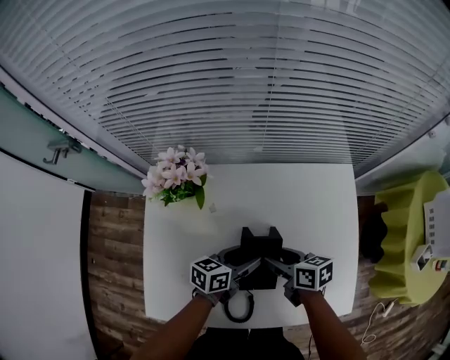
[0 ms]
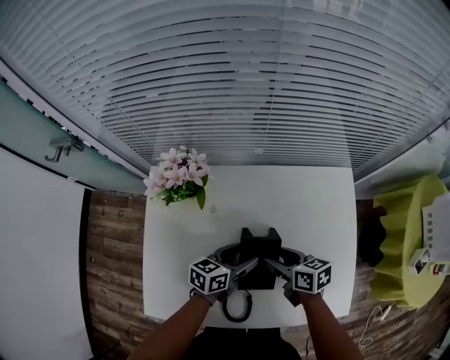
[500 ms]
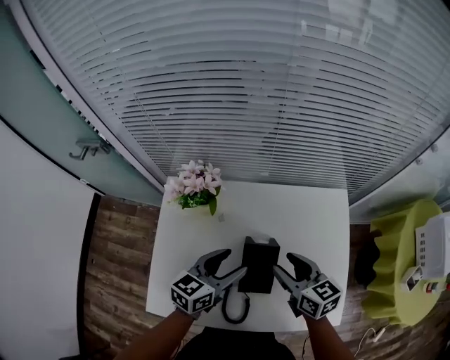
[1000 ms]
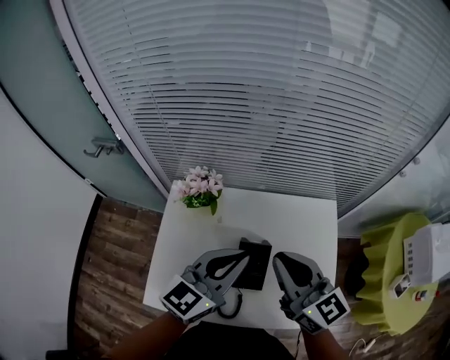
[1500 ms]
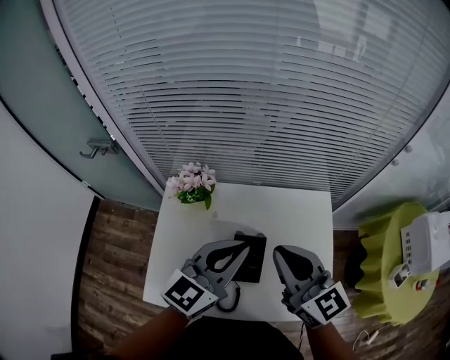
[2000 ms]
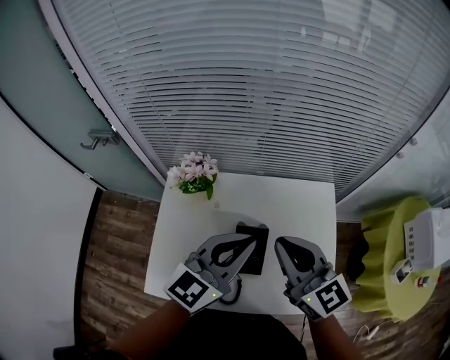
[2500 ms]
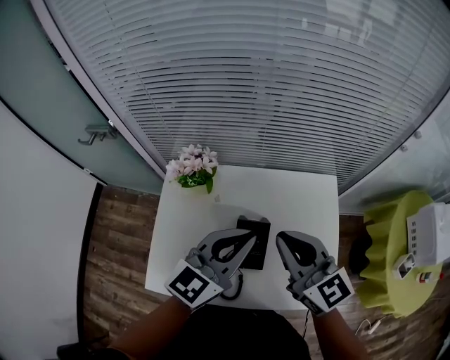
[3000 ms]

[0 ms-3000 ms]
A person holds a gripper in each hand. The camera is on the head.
0 ms to 1500 ms: The two grippers go some 35 cm upward. The right gripper tilts its fingers about 30 degrees upward, and closes up; the left gripper rotates approximately 40 degrees, and closes its fingers.
1500 ms to 3000 ms: The grippers make only small movements.

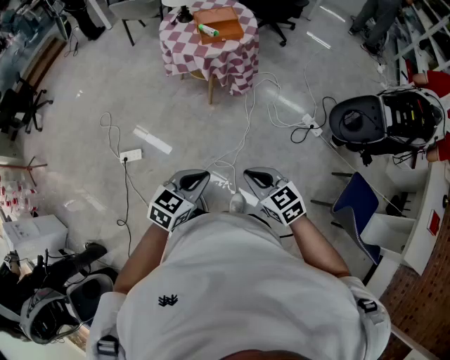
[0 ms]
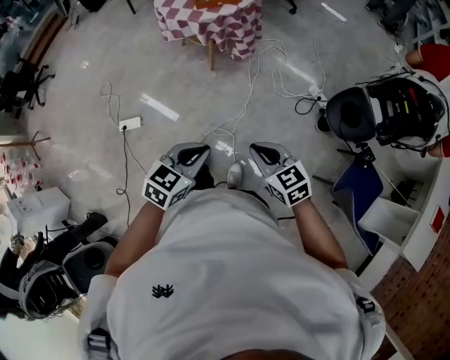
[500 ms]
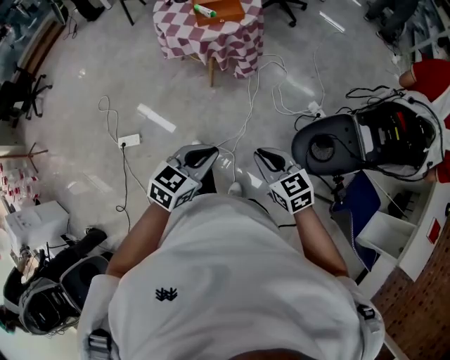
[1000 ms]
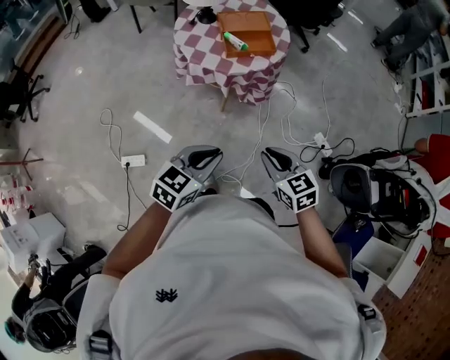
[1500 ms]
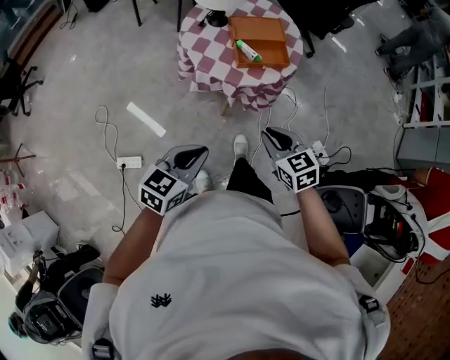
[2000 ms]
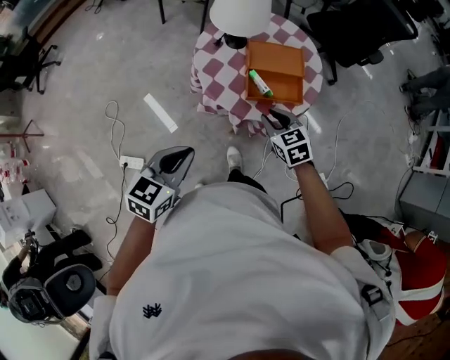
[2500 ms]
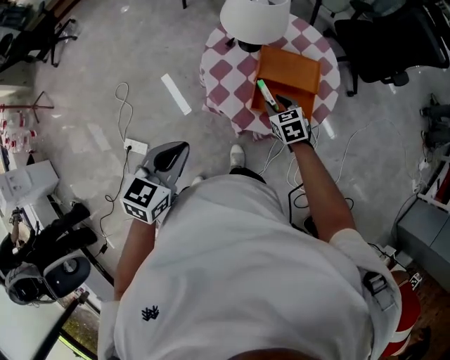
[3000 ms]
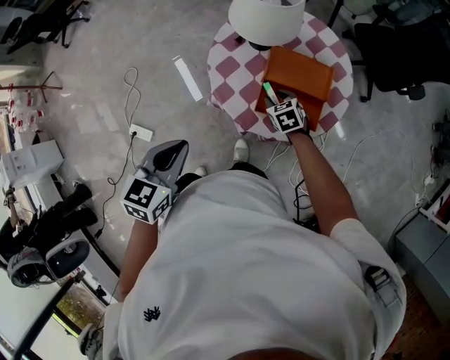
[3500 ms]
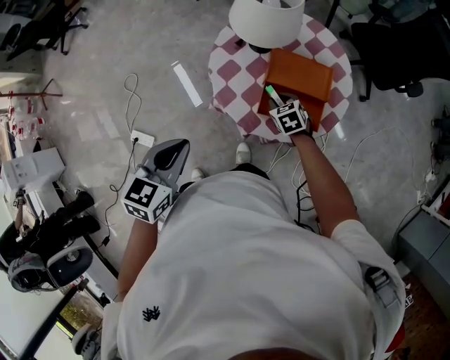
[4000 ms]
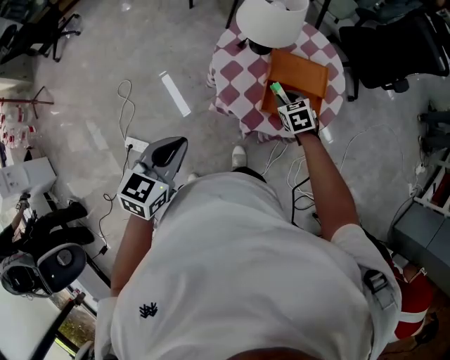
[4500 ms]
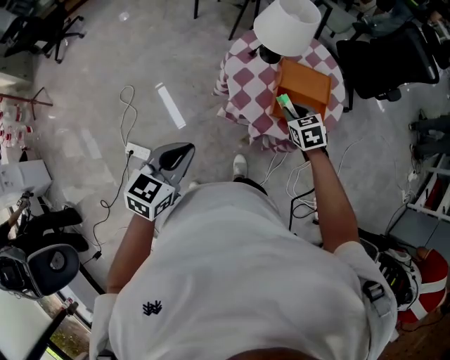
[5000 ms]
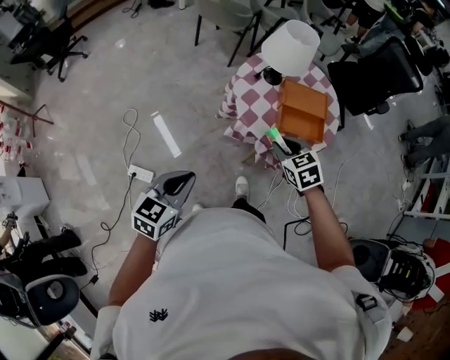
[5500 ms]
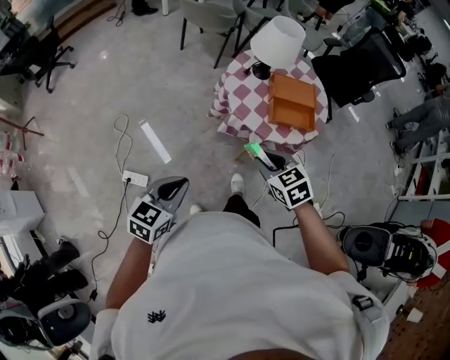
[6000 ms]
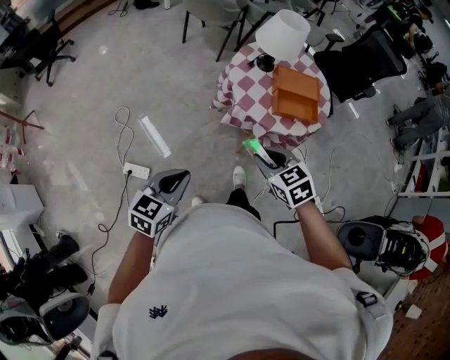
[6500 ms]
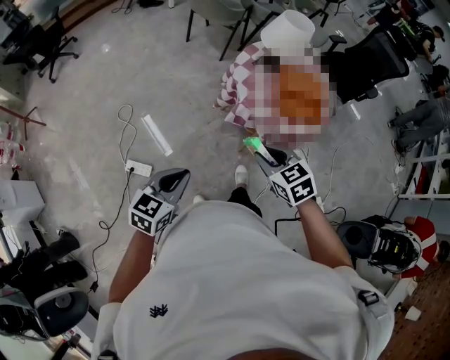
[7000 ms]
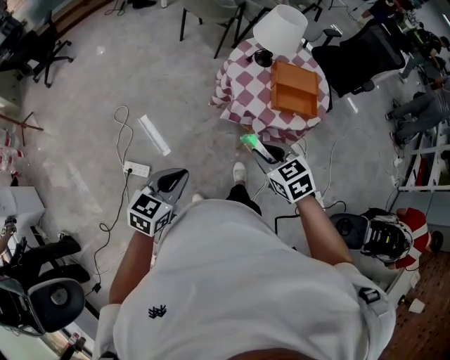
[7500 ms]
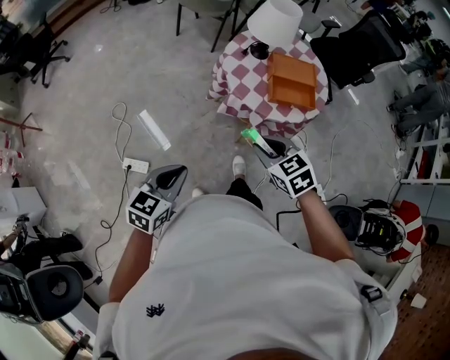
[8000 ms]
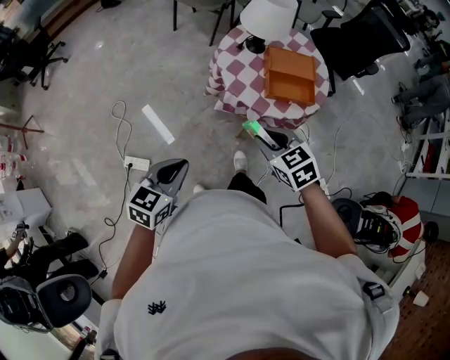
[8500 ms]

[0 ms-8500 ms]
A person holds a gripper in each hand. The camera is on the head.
0 ms to 2000 ms: The pair of grippers is taken forward, about 40 cm.
2000 ms to 4000 ms: The left gripper moves some 20 cm, and changes its angle by about 30 degrees, while the right gripper shifts by approximately 40 cm, and rotates some 30 degrees.
4000 ms to 6500 ms: The left gripper heads backward and to the left, covering some 25 cm. Meanwhile the right gripper moves backward, upward and to the left, roughly 40 cm.
6500 ms to 8500 ms: The right gripper moves about 5 cm.

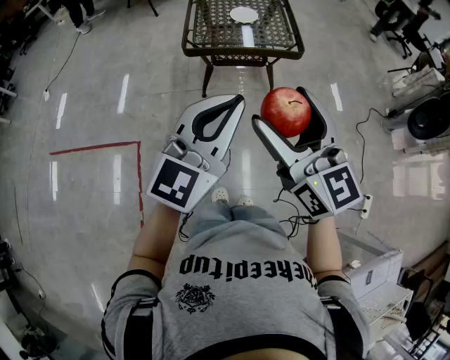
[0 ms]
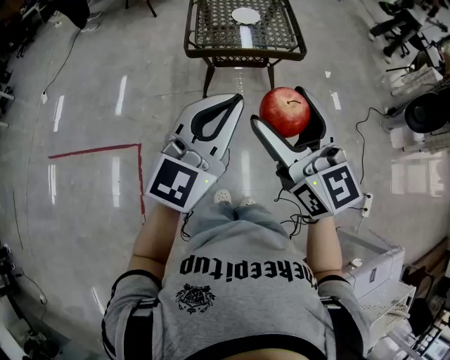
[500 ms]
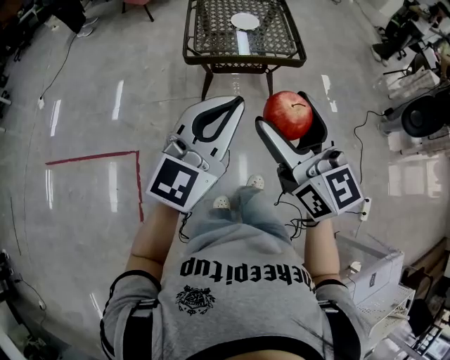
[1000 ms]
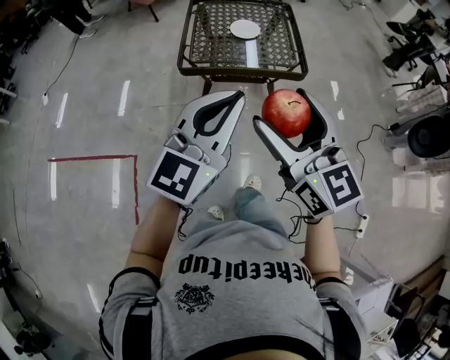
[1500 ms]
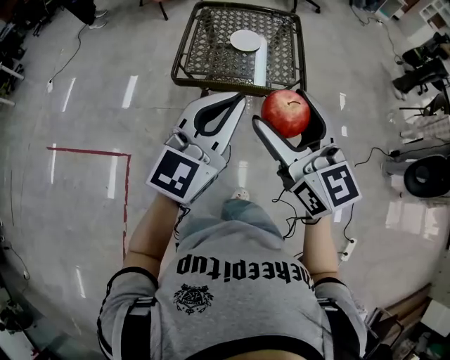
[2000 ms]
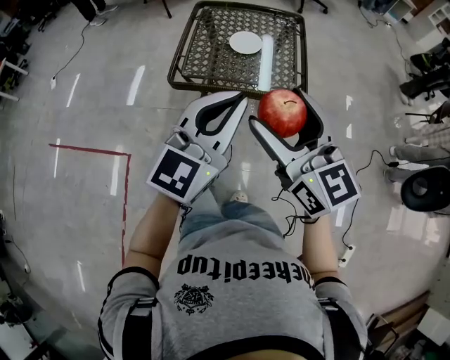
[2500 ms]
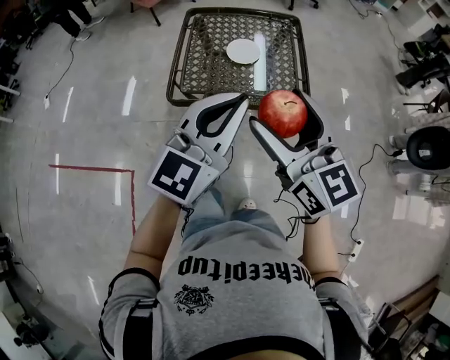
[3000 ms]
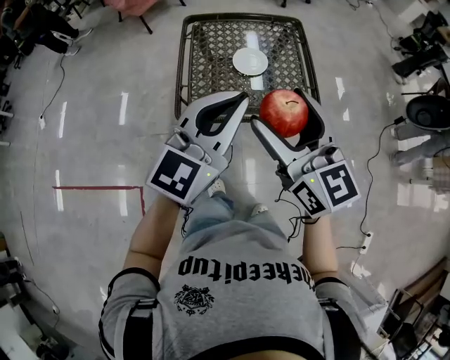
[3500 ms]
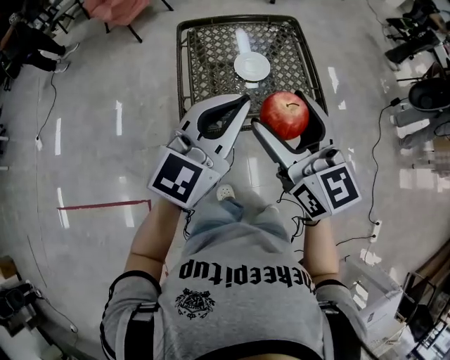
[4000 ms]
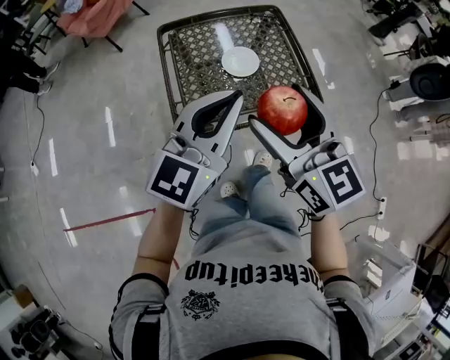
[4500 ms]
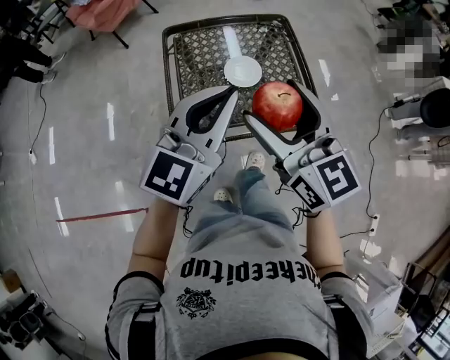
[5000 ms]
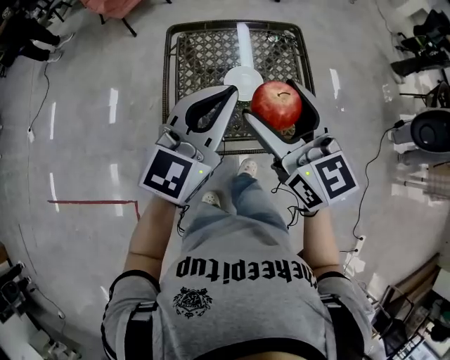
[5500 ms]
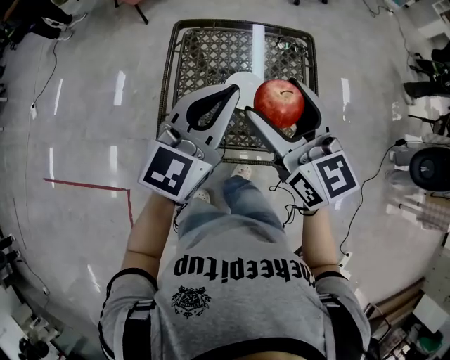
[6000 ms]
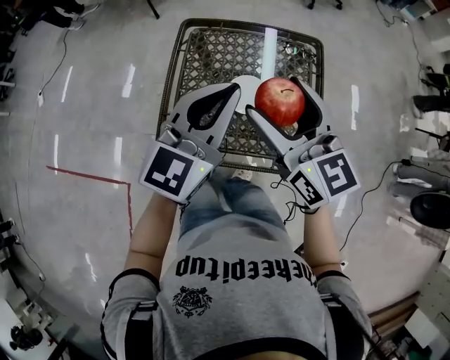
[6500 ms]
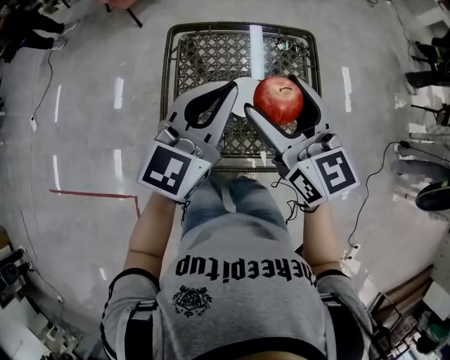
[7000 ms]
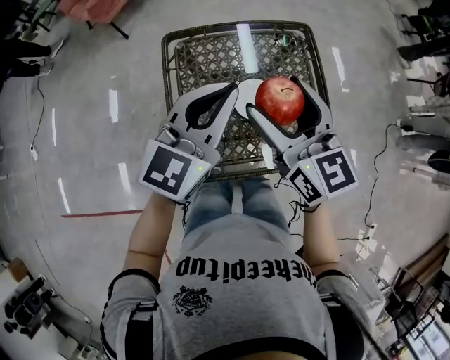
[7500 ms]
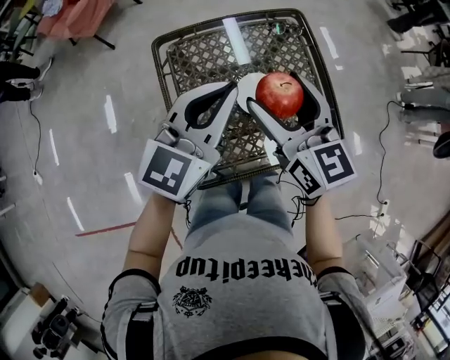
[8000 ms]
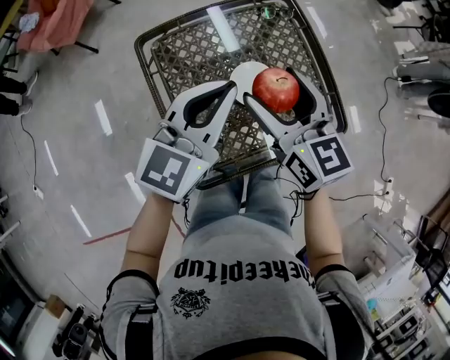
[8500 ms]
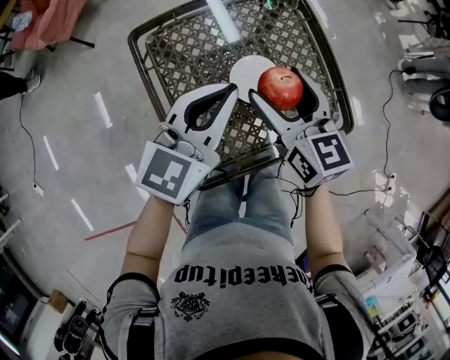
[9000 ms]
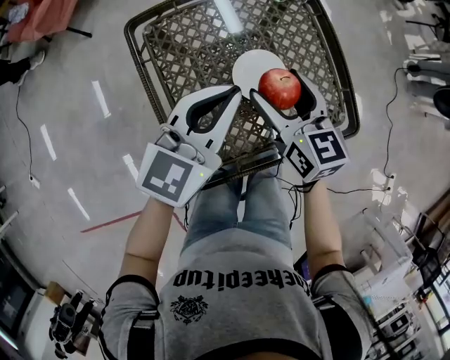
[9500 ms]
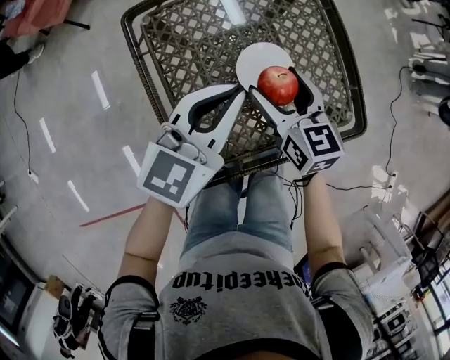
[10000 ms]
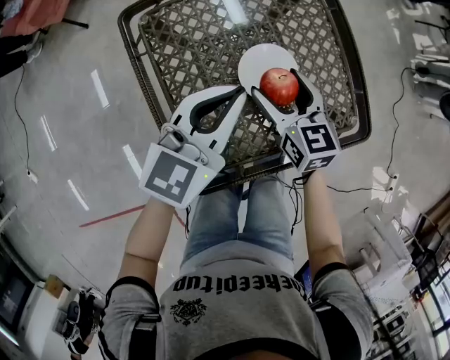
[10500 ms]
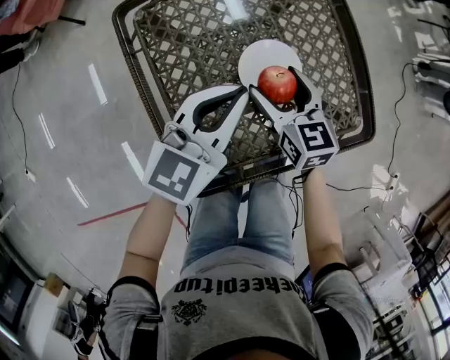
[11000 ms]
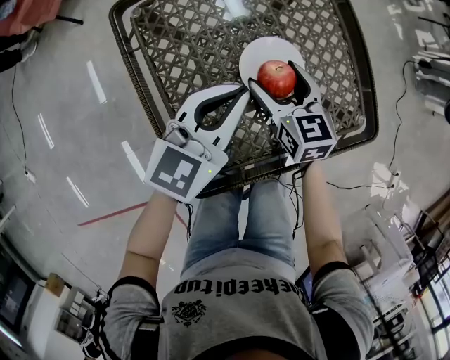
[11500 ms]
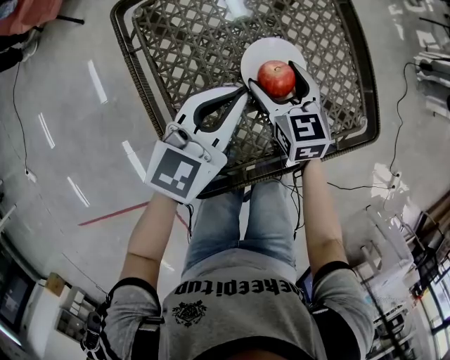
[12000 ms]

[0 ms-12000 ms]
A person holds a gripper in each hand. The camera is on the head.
0 ms to 2000 ms: The two grippers go roughly 20 cm forward.
2000 ms to 4000 ms: Both grippers move forward and to the left, some 15 cm.
4000 ms to 6000 ms: Both grippers travel together forward, some 20 cm.
6000 ms to 8000 ms: The right gripper is displaced forward and downward by approximately 10 cm, and changes its angle by about 20 degrees. The left gripper goes some 10 cm forward and to the left, and rotates some 20 degrees.
8000 ms to 10000 ms: The two grippers go some 20 cm downward.
10000 ms to 12000 ms: Both grippers move downward, some 10 cm.

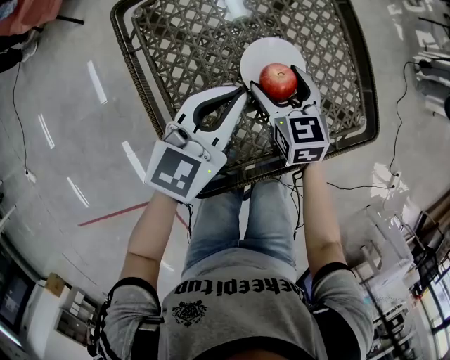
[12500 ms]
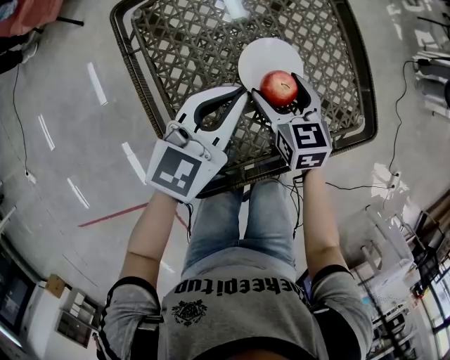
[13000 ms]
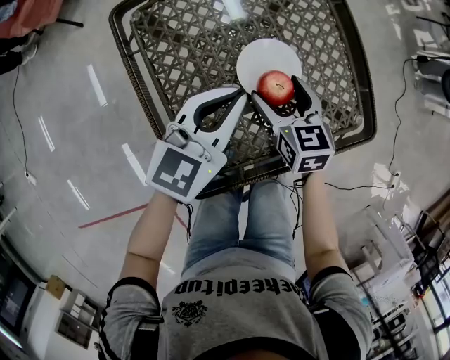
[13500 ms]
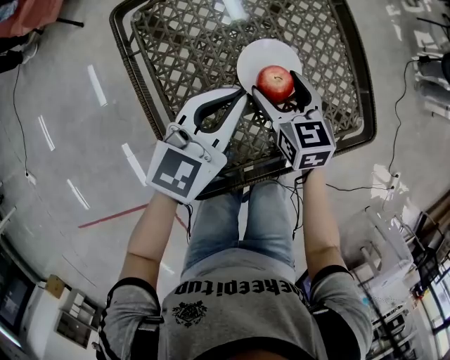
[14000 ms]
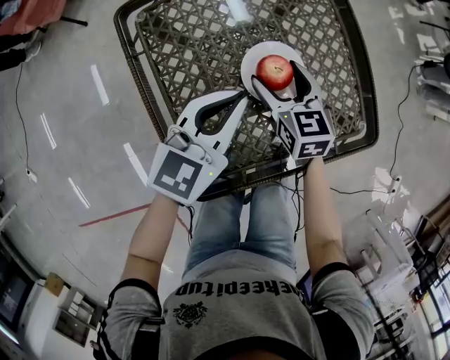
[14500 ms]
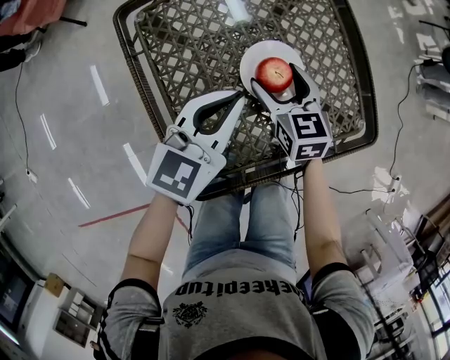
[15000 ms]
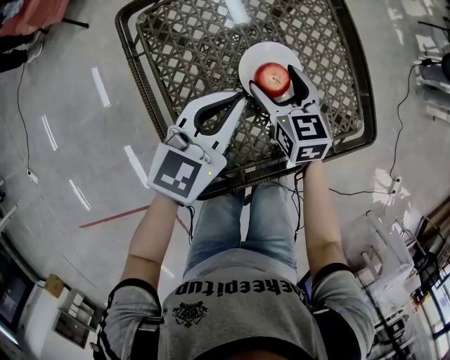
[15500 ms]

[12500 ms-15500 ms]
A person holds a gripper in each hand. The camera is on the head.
12500 ms to 15500 ms: The grippers make only small movements.
